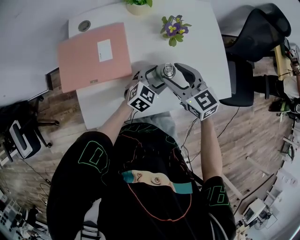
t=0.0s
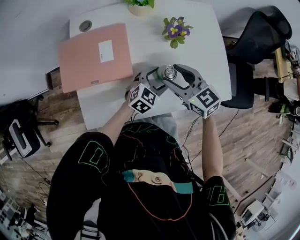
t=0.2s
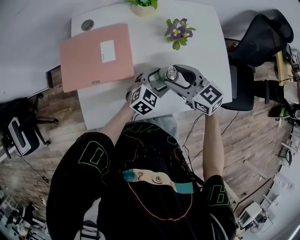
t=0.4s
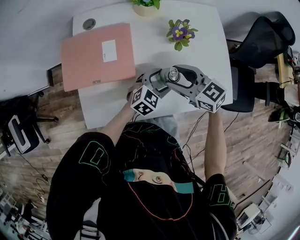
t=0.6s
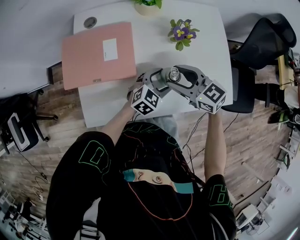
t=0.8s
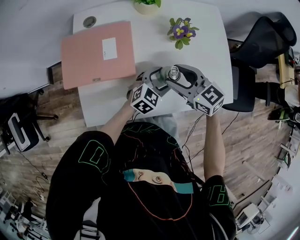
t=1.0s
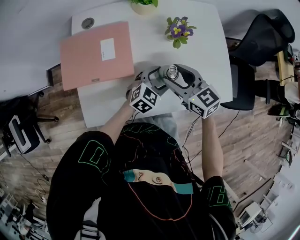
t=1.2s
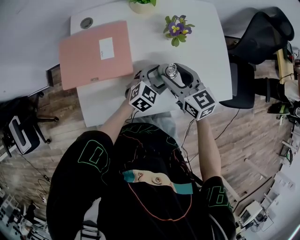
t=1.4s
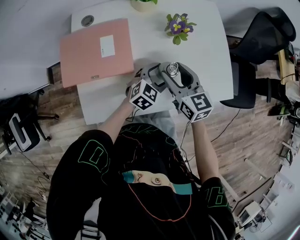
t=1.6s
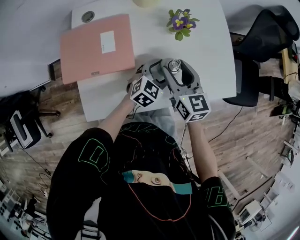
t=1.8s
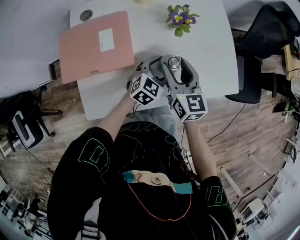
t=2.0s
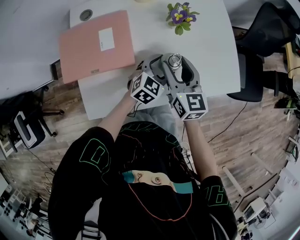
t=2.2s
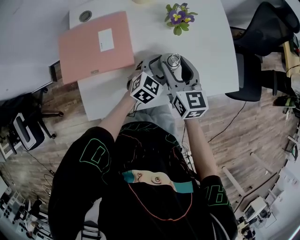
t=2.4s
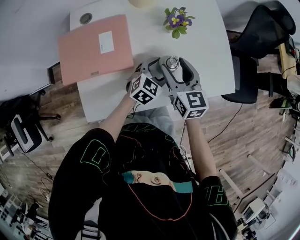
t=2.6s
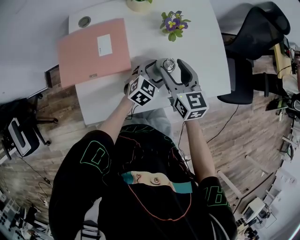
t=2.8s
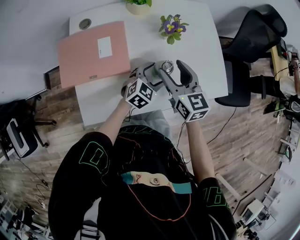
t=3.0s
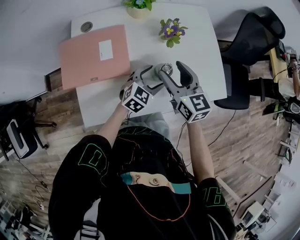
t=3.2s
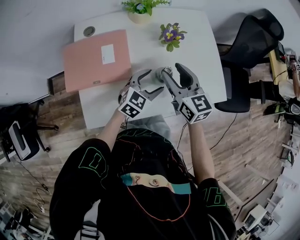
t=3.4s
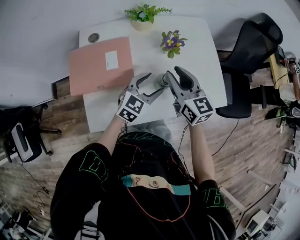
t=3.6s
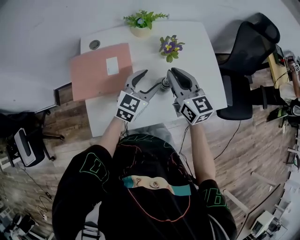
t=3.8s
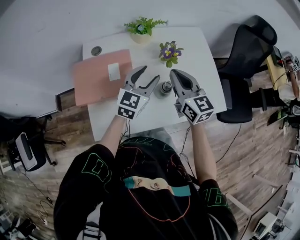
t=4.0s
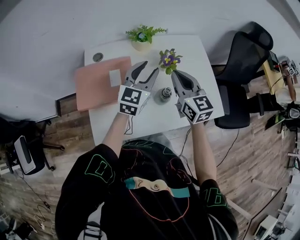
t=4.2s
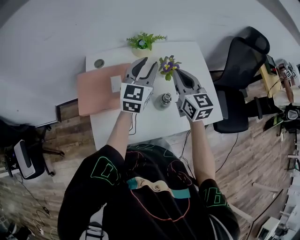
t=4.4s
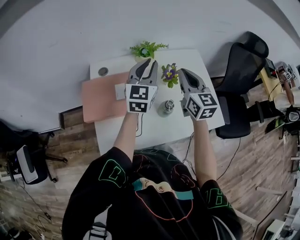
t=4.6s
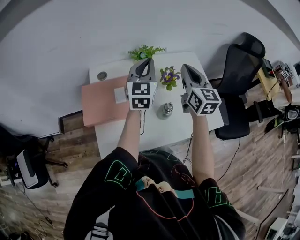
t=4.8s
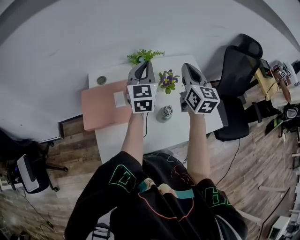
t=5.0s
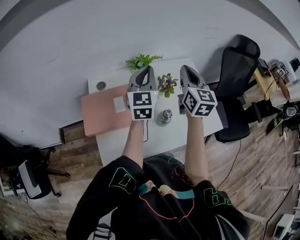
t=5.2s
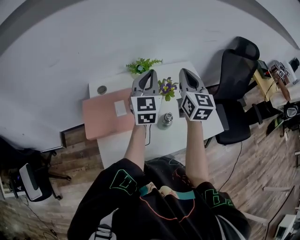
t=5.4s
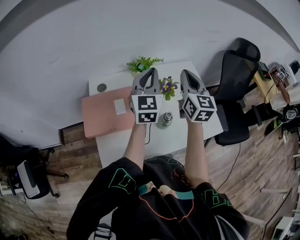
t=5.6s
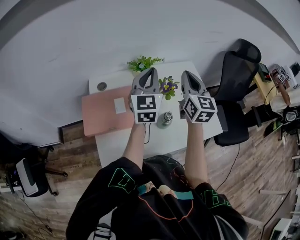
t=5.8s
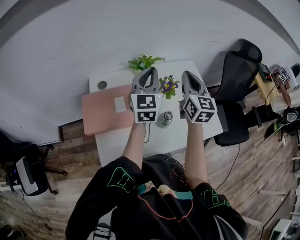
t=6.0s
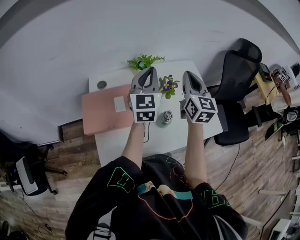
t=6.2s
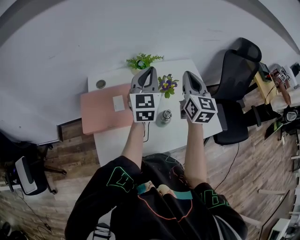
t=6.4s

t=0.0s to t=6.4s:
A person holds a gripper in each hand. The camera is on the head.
t=0.0s to t=1.6s: There are only small adjustments of the grippers.
t=1.6s to t=3.2s: The grippers make only small movements.
t=3.2s to t=4.8s: The left gripper is displaced upward and forward by roughly 30 cm, turns by roughly 40 degrees, and closes. The right gripper goes roughly 20 cm upward and forward, and closes its fingers.
t=4.8s to t=6.4s: The grippers move only a little.

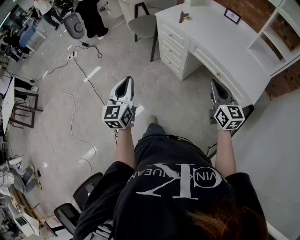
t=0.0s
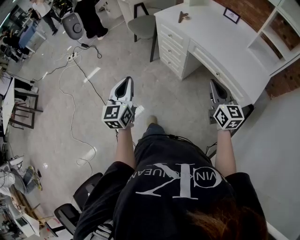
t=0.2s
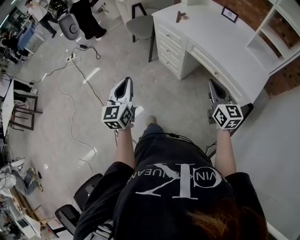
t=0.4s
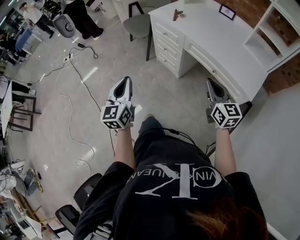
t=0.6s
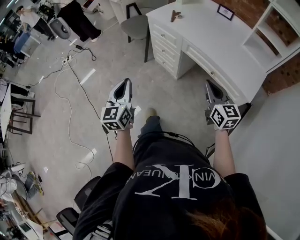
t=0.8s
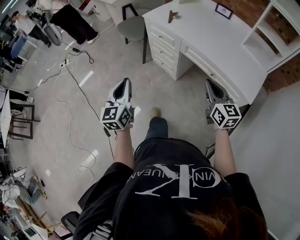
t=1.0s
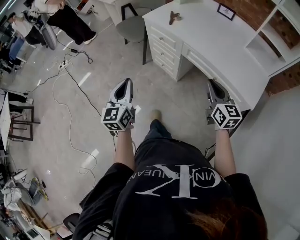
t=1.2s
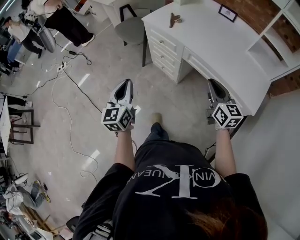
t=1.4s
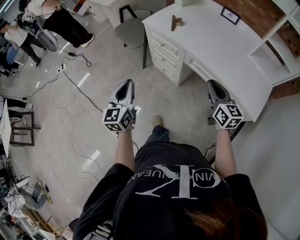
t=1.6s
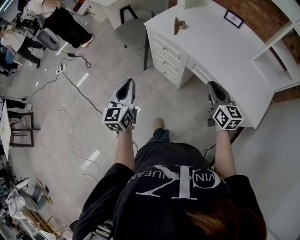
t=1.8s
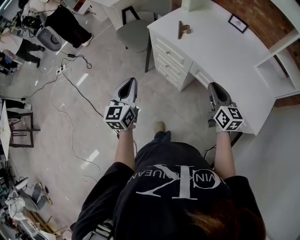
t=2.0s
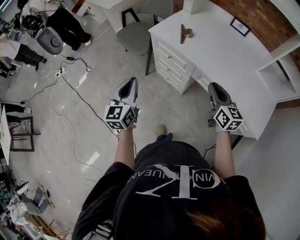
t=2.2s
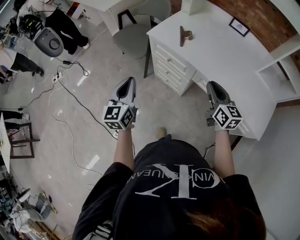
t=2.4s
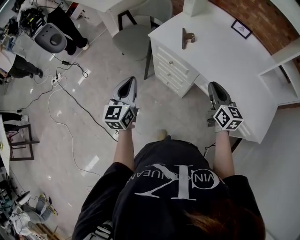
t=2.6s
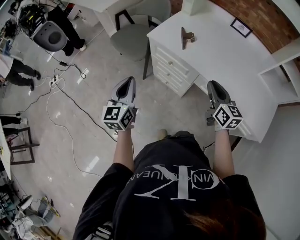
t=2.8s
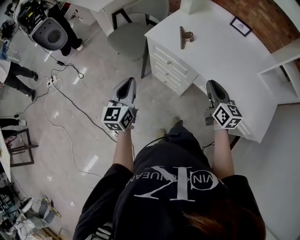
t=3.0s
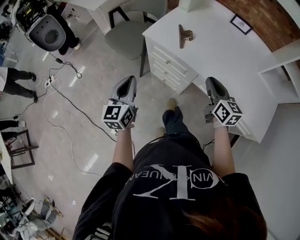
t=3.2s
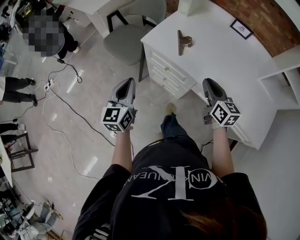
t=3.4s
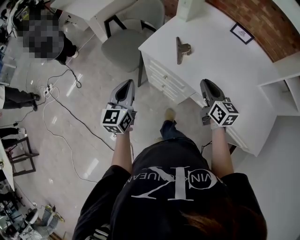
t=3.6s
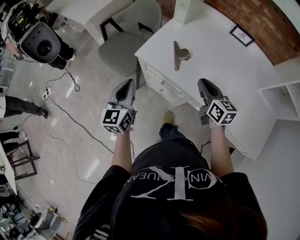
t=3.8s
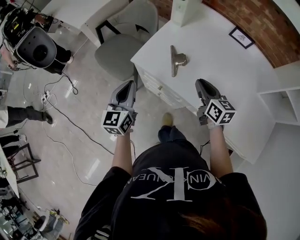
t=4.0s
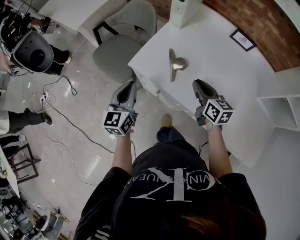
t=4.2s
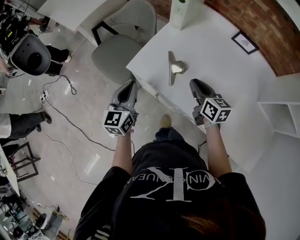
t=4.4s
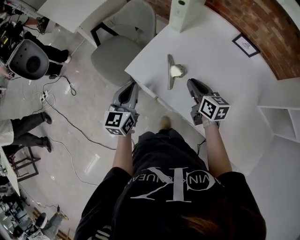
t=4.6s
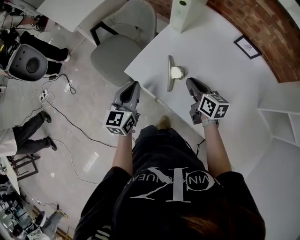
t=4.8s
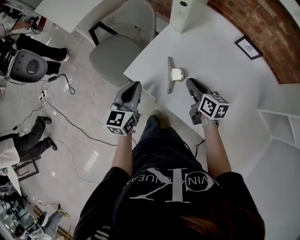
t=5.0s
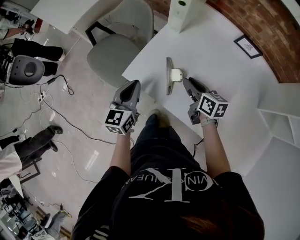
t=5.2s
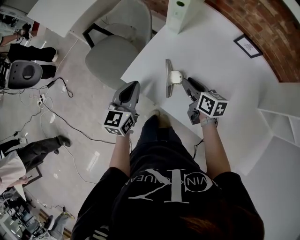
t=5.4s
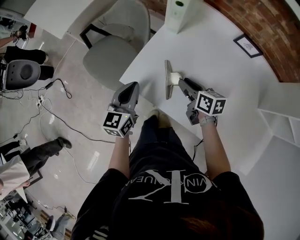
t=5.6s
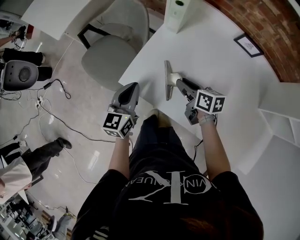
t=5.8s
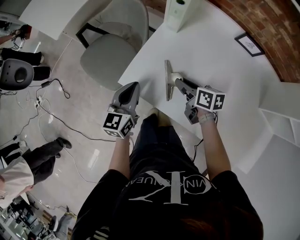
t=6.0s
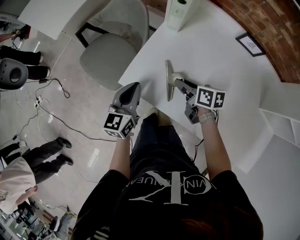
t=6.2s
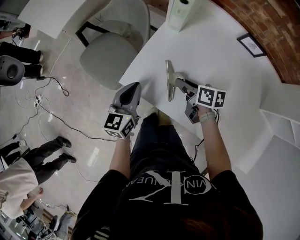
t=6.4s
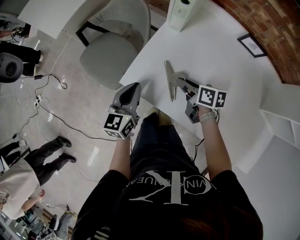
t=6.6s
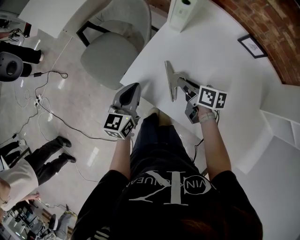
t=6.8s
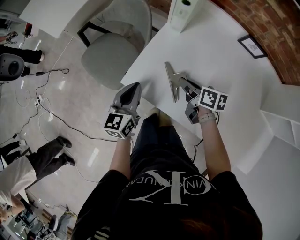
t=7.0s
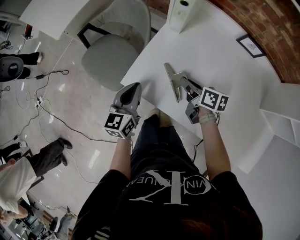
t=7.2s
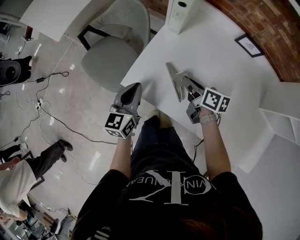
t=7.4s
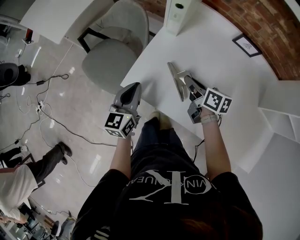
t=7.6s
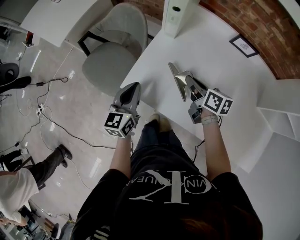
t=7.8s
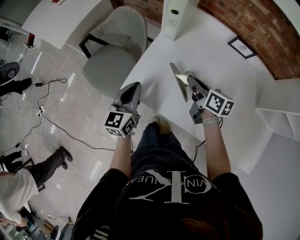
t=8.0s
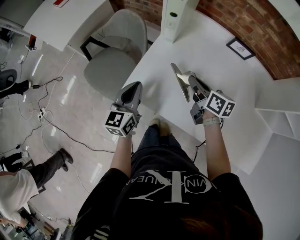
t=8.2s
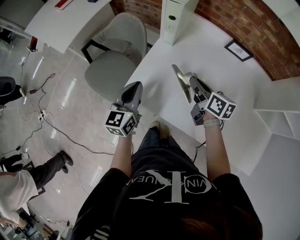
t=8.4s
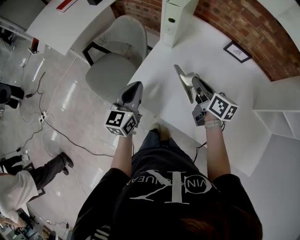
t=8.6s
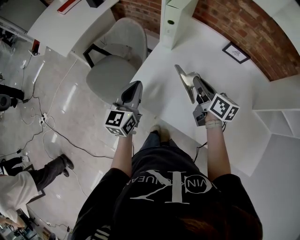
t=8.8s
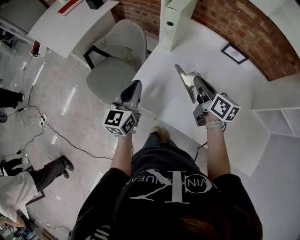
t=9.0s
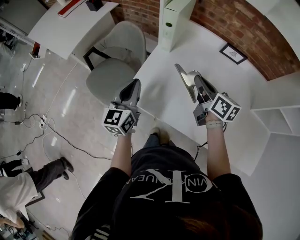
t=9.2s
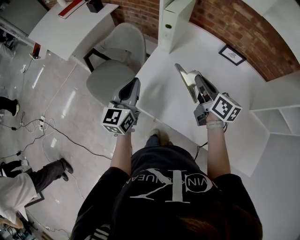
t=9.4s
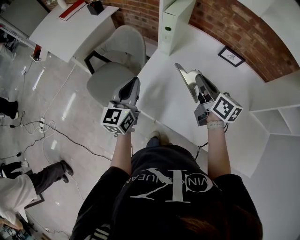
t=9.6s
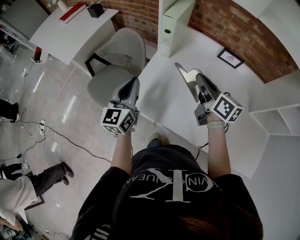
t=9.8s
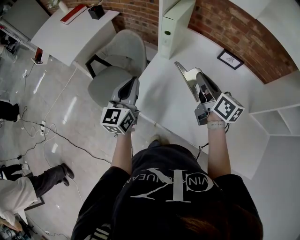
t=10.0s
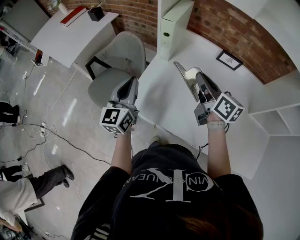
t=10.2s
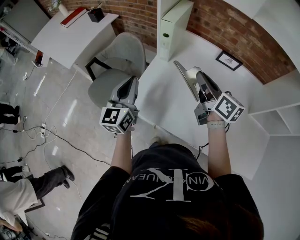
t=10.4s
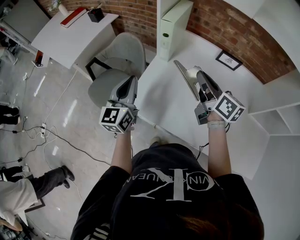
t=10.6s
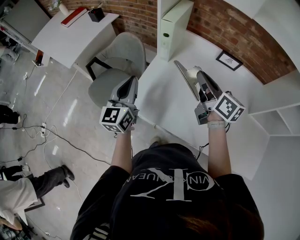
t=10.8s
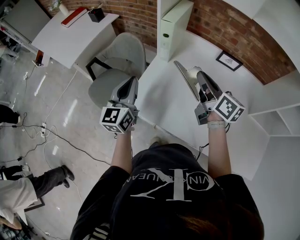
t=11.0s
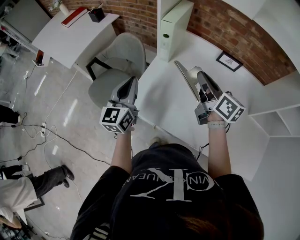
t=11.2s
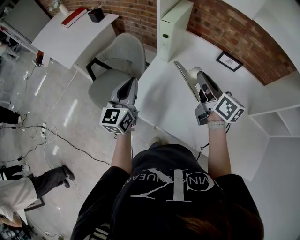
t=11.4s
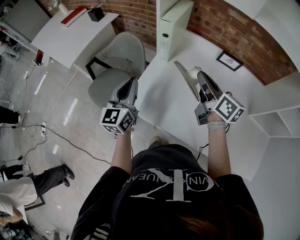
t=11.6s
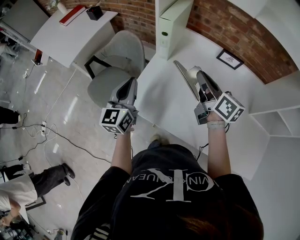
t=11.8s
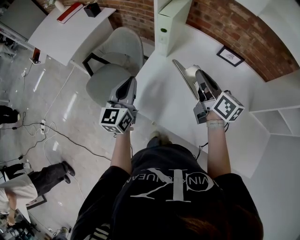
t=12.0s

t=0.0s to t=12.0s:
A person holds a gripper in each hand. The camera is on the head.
t=0.0s to t=1.6s: Both grippers move forward, roughly 15 cm.
t=1.6s to t=3.0s: The grippers both shift forward by about 20 cm.
t=3.0s to t=4.4s: The two grippers go about 25 cm forward.
t=4.4s to t=6.0s: The right gripper moves forward and downward, approximately 10 cm, and turns by roughly 20 degrees, while the left gripper moves forward, approximately 10 cm.
t=6.0s to t=7.6s: The grippers move only a little.
t=7.6s to t=9.0s: The two grippers go some 10 cm upward.
t=9.0s to t=10.4s: Both grippers move upward, about 5 cm.
t=10.4s to t=12.0s: The grippers stay close to where they were, moving slightly.

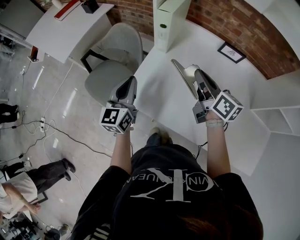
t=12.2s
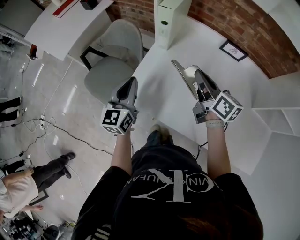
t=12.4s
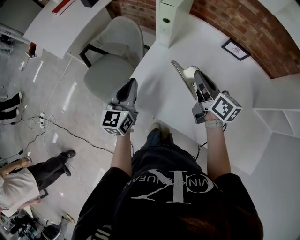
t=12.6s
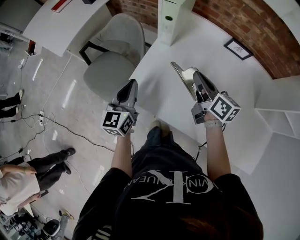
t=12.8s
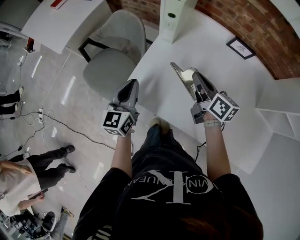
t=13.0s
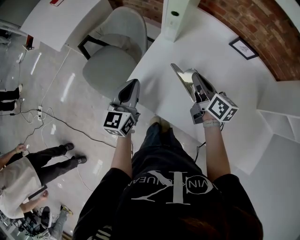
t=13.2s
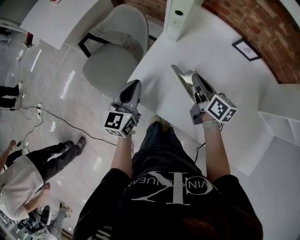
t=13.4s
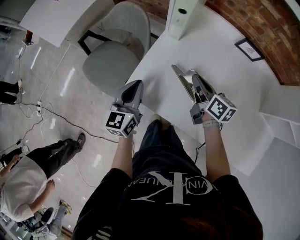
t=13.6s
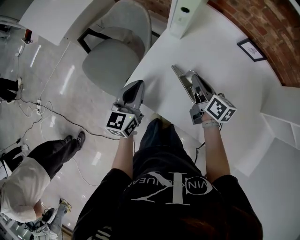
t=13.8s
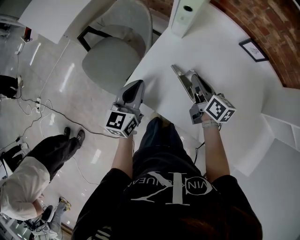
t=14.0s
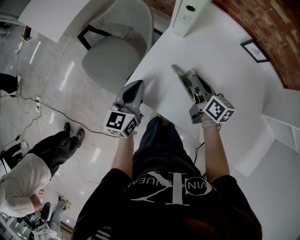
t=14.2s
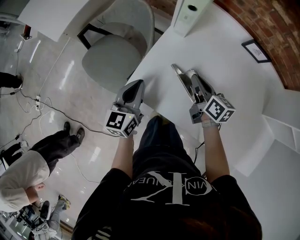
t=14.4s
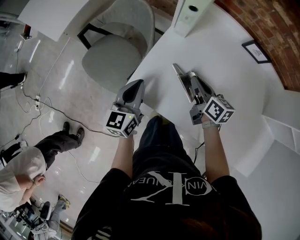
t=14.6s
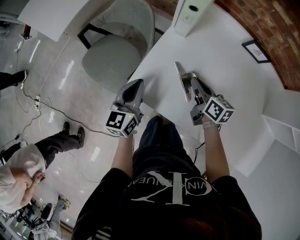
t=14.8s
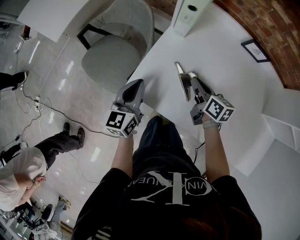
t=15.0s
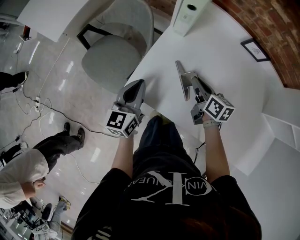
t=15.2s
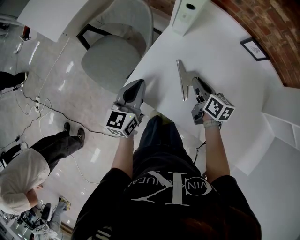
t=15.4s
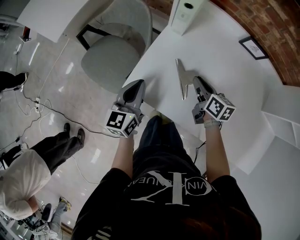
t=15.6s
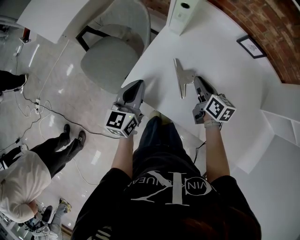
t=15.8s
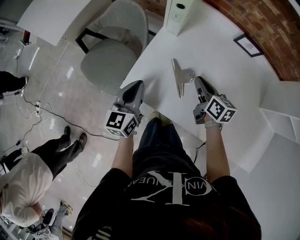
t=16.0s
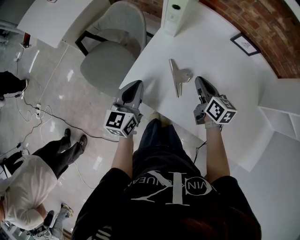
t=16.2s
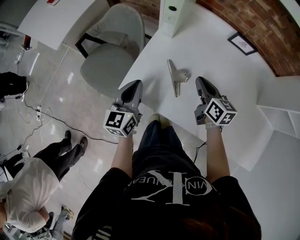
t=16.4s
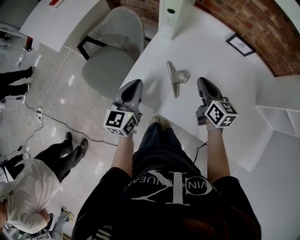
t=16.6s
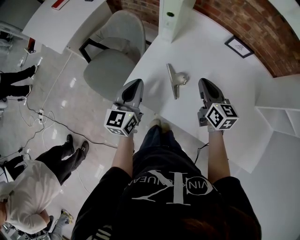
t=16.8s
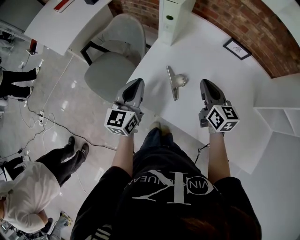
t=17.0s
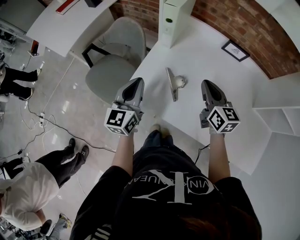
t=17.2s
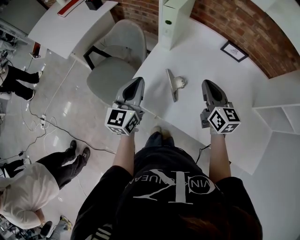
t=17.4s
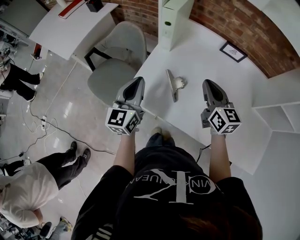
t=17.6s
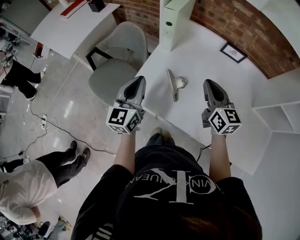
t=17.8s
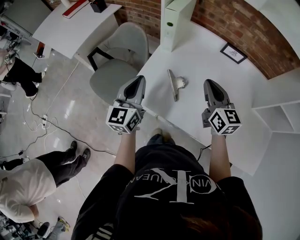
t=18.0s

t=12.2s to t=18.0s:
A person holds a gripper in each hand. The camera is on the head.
t=12.2s to t=13.6s: The left gripper shifts approximately 10 cm downward; the right gripper shifts about 15 cm downward.
t=13.6s to t=15.0s: The right gripper shifts by some 5 cm.
t=15.0s to t=16.6s: The left gripper changes place by roughly 5 cm; the right gripper goes about 10 cm upward and to the right.
t=16.6s to t=18.0s: Both grippers move upward, roughly 10 cm.
